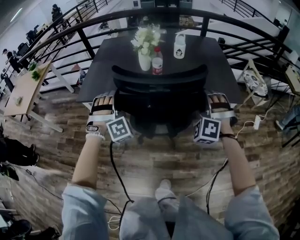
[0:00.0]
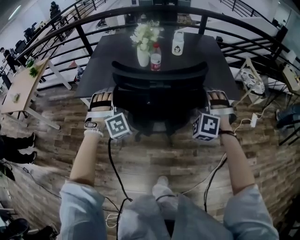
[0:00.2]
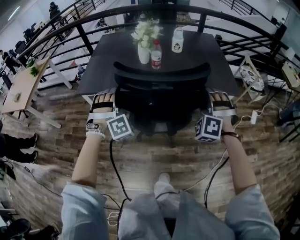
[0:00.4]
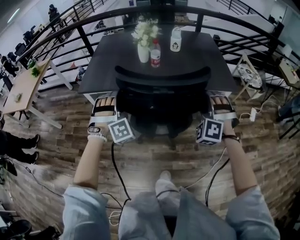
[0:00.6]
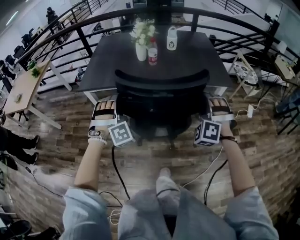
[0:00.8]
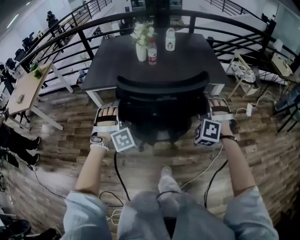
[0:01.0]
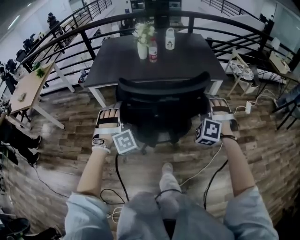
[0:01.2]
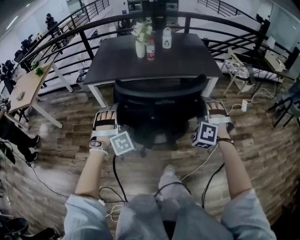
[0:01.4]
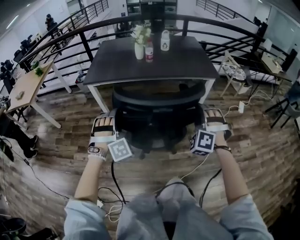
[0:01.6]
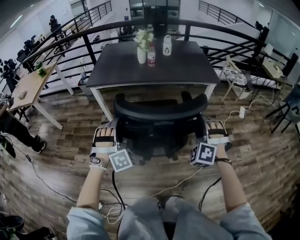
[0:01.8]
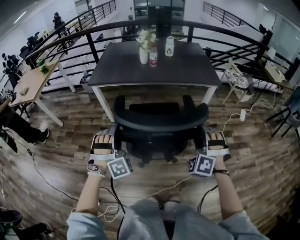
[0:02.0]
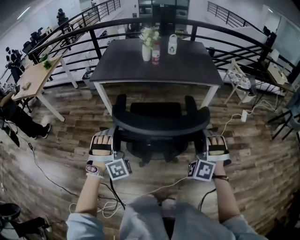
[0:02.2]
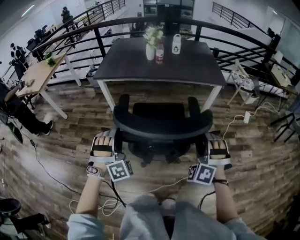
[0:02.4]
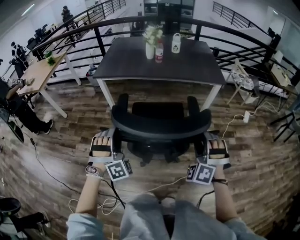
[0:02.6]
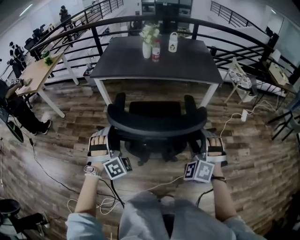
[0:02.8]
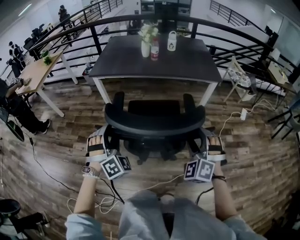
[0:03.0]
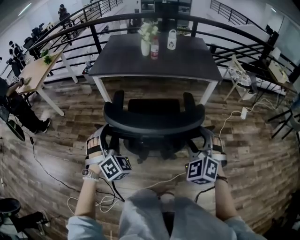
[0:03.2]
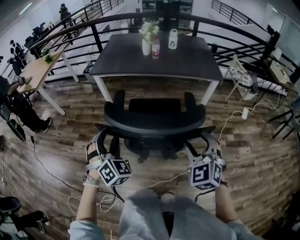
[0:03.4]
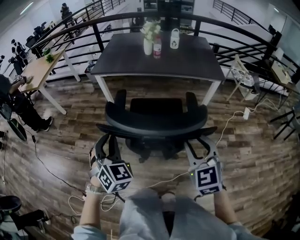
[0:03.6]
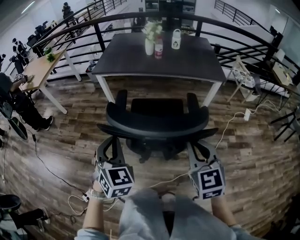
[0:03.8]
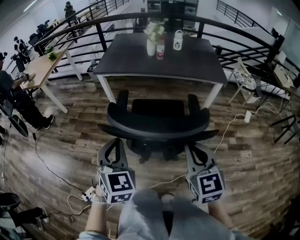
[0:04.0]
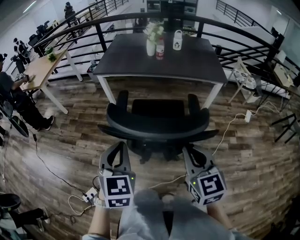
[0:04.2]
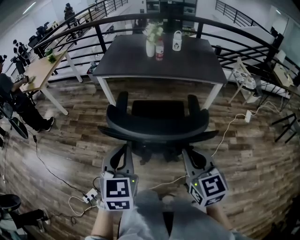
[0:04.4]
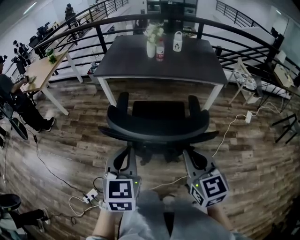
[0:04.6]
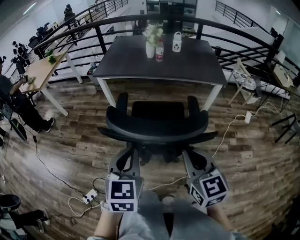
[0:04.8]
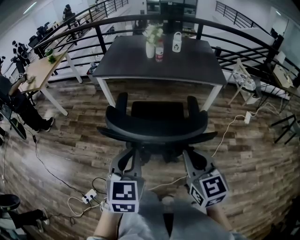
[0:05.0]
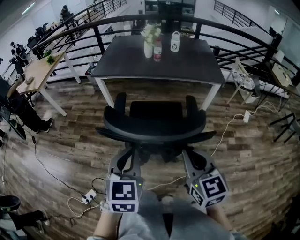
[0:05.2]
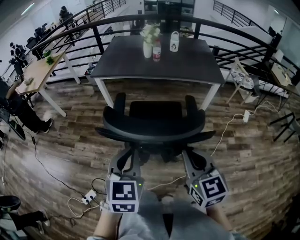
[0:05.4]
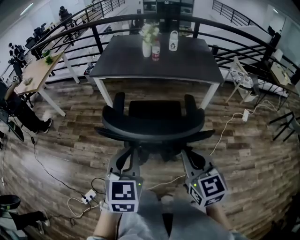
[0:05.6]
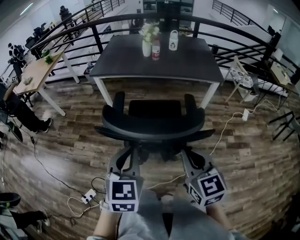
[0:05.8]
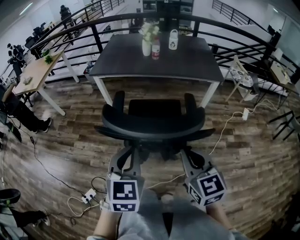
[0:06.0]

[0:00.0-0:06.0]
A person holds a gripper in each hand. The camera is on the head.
0:00.0 to 0:01.6: Both grippers travel together backward, approximately 35 cm.
0:01.6 to 0:03.0: Both grippers move backward, some 10 cm.
0:03.0 to 0:04.4: The right gripper shifts some 10 cm to the left and upward, rotates around the line of its fingers by about 60 degrees, clockwise from behind, and closes its fingers; the left gripper moves backward and upward, some 10 cm, rotates around the line of its fingers by approximately 60 degrees, counterclockwise from behind, and closes its fingers.
0:04.4 to 0:06.0: The grippers stay close to where they were, moving slightly.

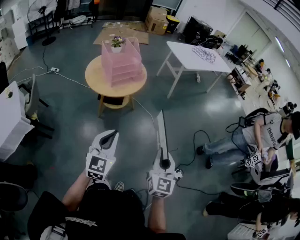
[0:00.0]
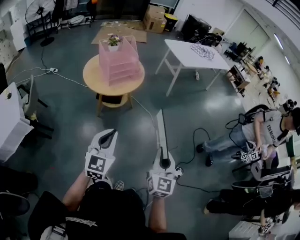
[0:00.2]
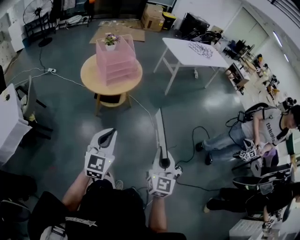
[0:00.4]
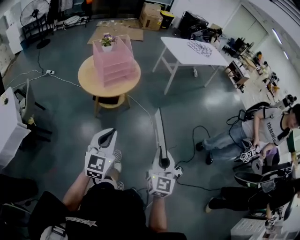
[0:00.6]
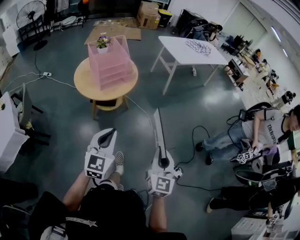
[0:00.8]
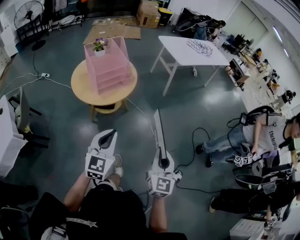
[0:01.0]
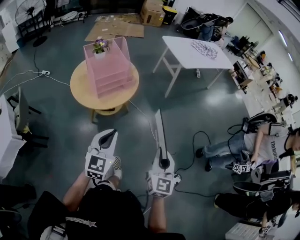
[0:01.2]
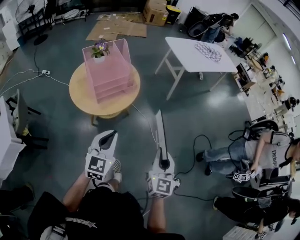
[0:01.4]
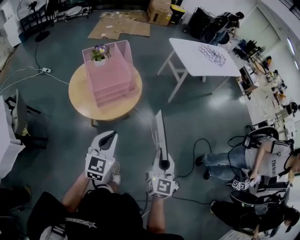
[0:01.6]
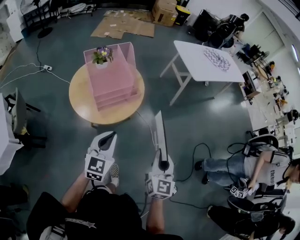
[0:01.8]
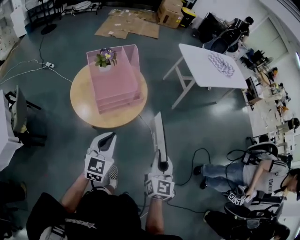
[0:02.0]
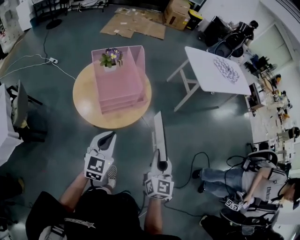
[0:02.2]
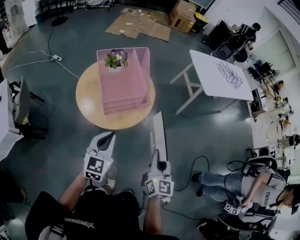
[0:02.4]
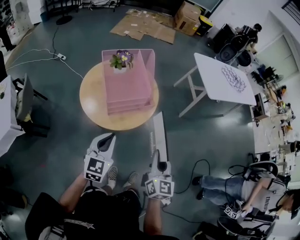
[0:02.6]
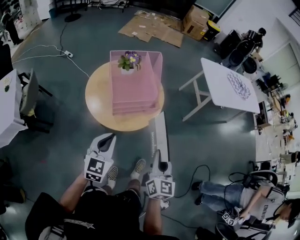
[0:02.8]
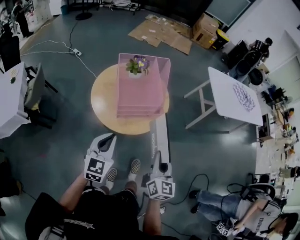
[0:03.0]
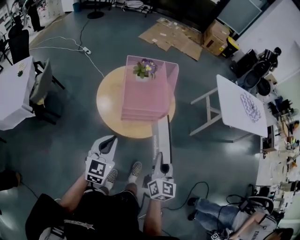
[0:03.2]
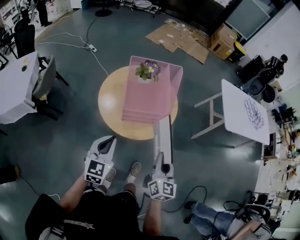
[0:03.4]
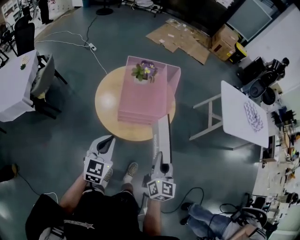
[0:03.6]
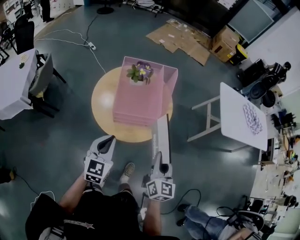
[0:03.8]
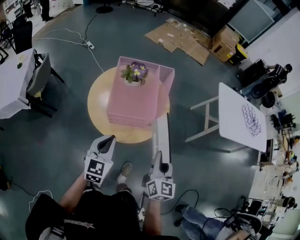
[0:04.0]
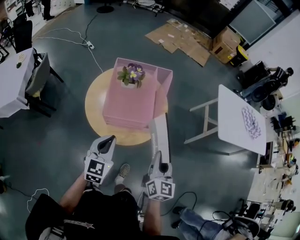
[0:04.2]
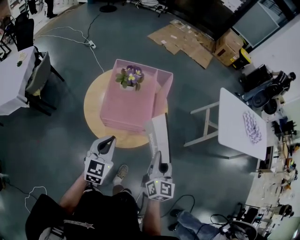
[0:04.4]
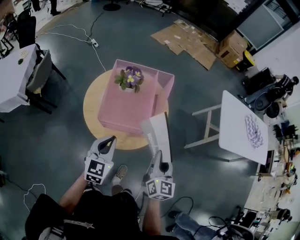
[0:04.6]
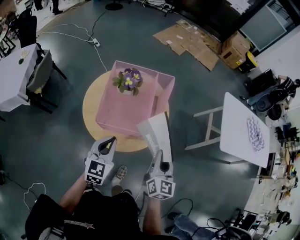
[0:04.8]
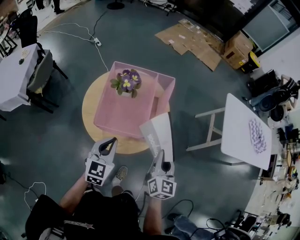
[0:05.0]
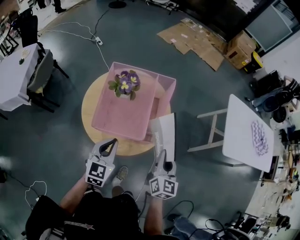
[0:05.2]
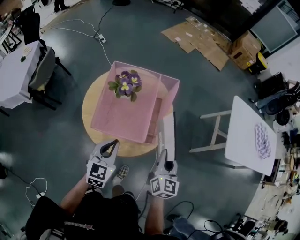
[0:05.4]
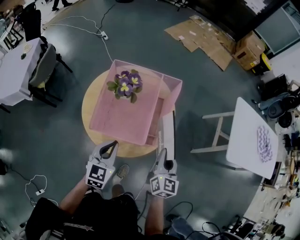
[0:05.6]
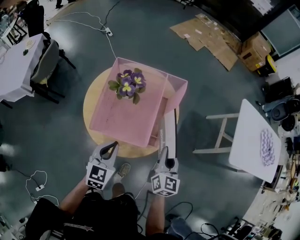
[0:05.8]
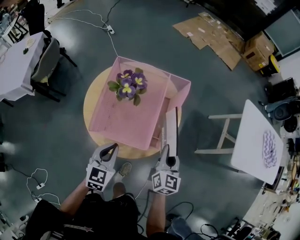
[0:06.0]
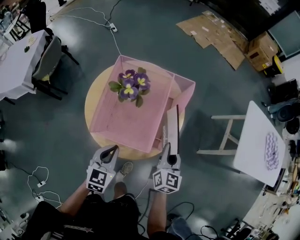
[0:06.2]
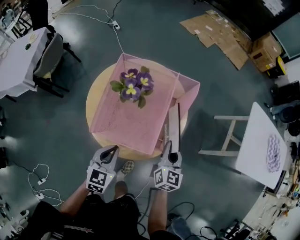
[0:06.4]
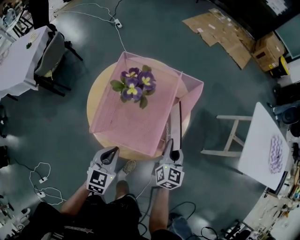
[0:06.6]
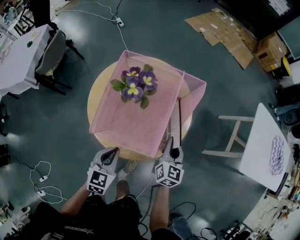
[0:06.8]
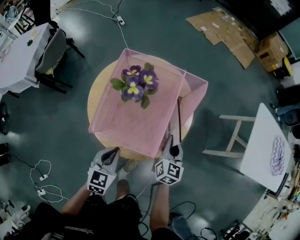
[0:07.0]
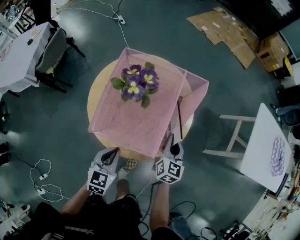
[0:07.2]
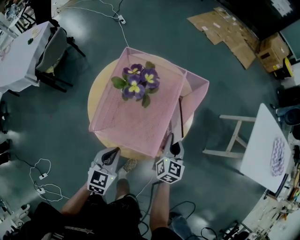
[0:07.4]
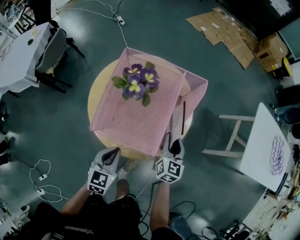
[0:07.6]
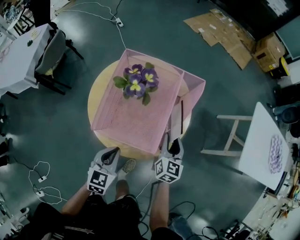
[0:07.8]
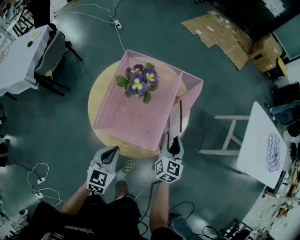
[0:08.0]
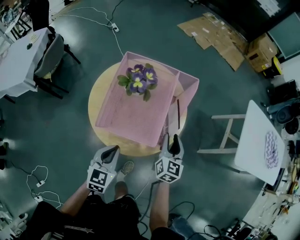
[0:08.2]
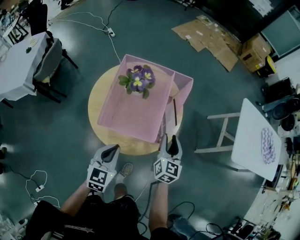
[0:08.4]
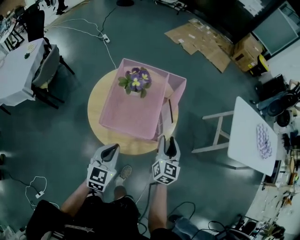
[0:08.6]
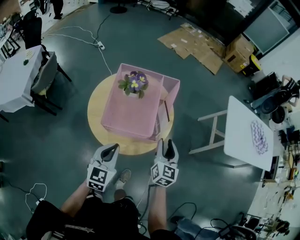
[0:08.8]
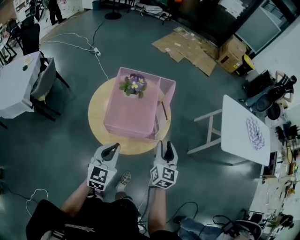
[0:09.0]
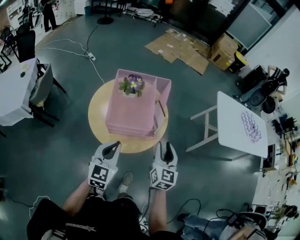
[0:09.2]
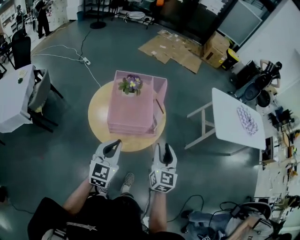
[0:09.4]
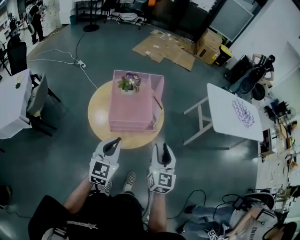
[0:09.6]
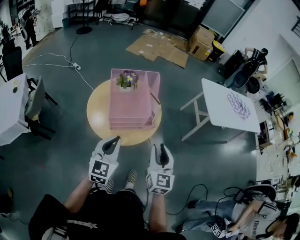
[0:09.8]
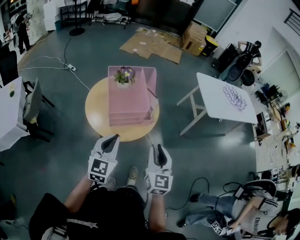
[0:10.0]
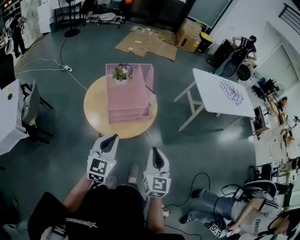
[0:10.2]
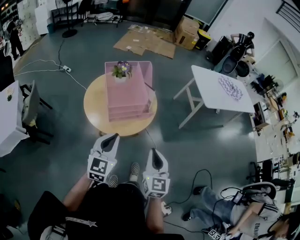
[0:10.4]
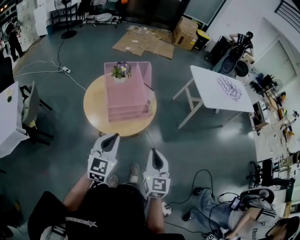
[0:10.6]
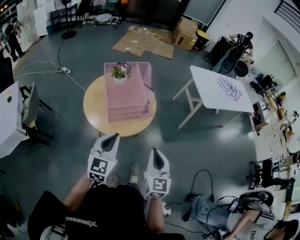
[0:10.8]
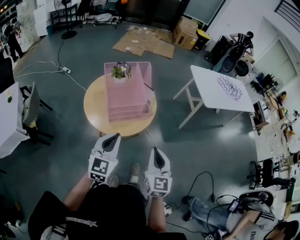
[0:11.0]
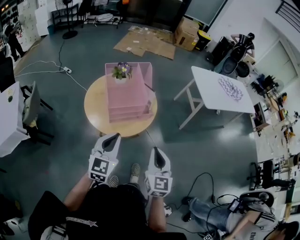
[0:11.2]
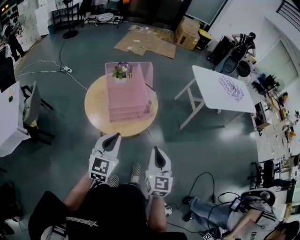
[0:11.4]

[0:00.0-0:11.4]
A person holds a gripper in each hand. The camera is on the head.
0:00.0 to 0:01.4: The two grippers go roughly 25 cm forward.
0:01.4 to 0:02.8: Both grippers travel together forward and to the left, roughly 15 cm. The right gripper turns by approximately 20 degrees.
0:02.8 to 0:04.2: The right gripper heads forward, covering about 15 cm, while the left gripper is displaced forward and to the right by about 10 cm.
0:04.2 to 0:05.6: The left gripper goes approximately 10 cm forward and downward; the right gripper moves forward and downward, about 15 cm.
0:05.6 to 0:07.2: The left gripper is displaced downward by some 10 cm, while the right gripper moves downward and forward, about 15 cm.
0:07.2 to 0:08.6: The right gripper travels upward and backward by about 10 cm, and opens; the left gripper goes about 10 cm upward.
0:08.6 to 0:10.0: The left gripper is displaced upward and backward by about 15 cm, and swivels approximately 30 degrees, while the right gripper heads backward and upward, covering roughly 30 cm.
0:10.0 to 0:11.4: The right gripper travels backward by some 5 cm, and closes its fingers.

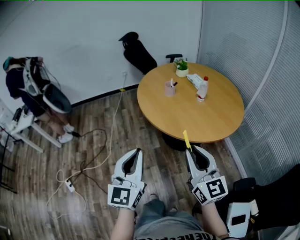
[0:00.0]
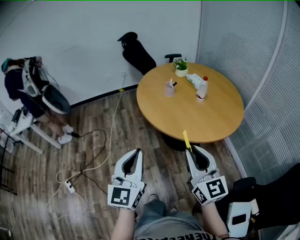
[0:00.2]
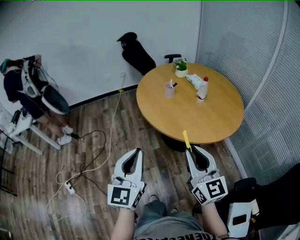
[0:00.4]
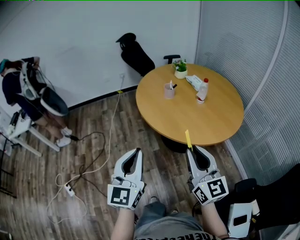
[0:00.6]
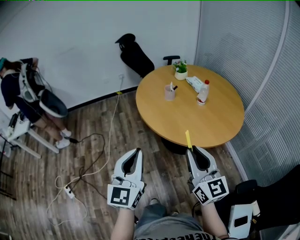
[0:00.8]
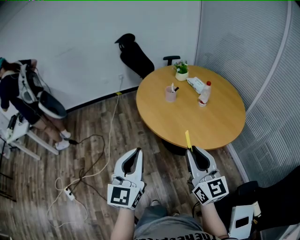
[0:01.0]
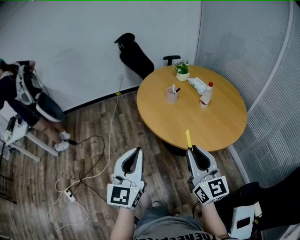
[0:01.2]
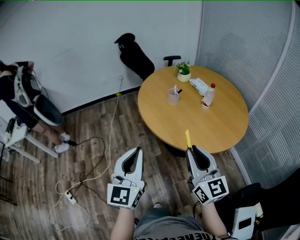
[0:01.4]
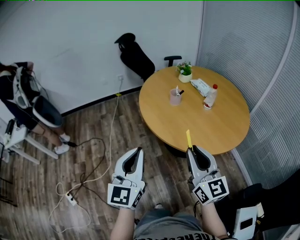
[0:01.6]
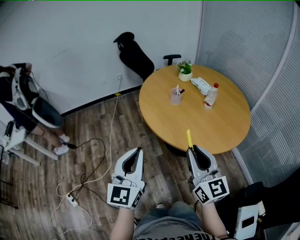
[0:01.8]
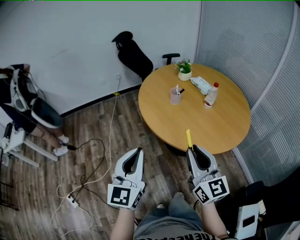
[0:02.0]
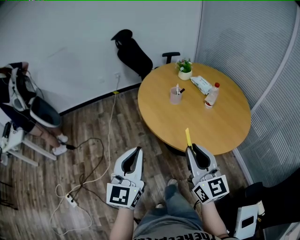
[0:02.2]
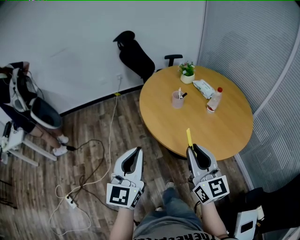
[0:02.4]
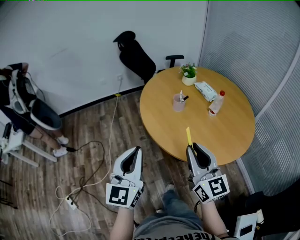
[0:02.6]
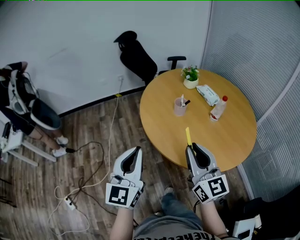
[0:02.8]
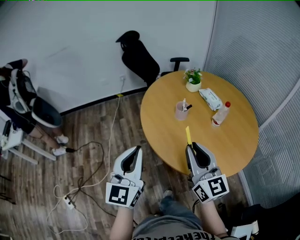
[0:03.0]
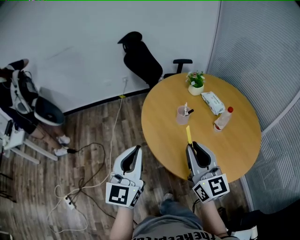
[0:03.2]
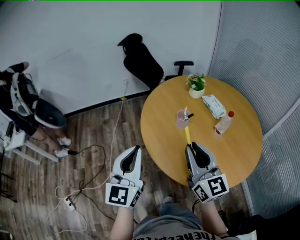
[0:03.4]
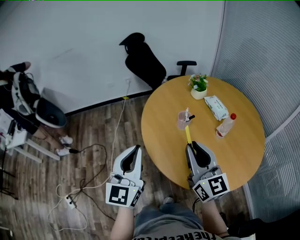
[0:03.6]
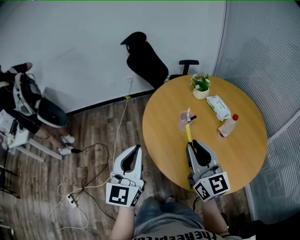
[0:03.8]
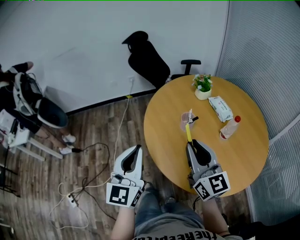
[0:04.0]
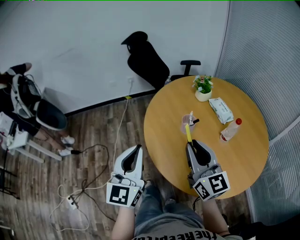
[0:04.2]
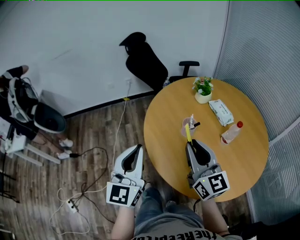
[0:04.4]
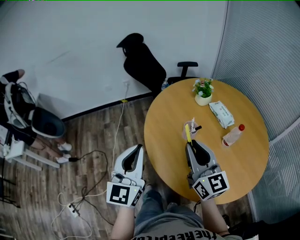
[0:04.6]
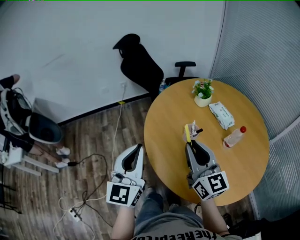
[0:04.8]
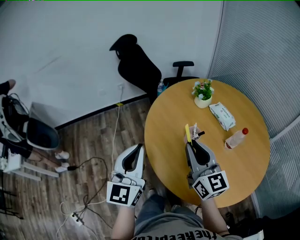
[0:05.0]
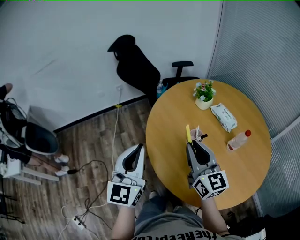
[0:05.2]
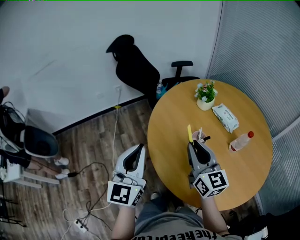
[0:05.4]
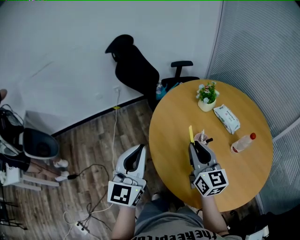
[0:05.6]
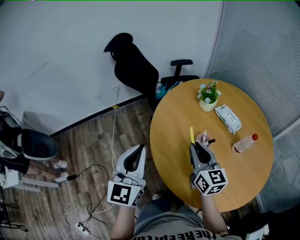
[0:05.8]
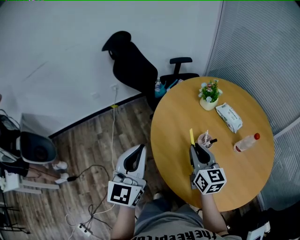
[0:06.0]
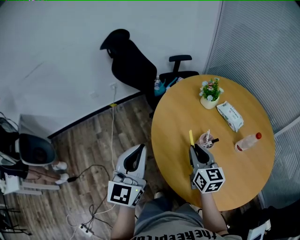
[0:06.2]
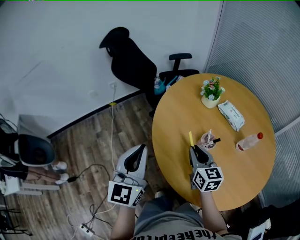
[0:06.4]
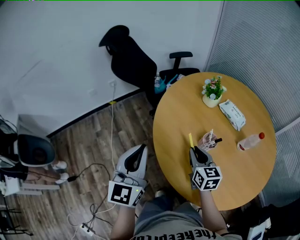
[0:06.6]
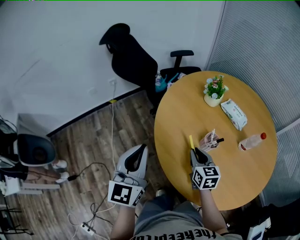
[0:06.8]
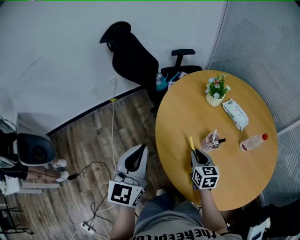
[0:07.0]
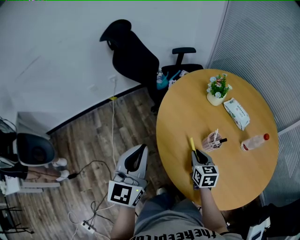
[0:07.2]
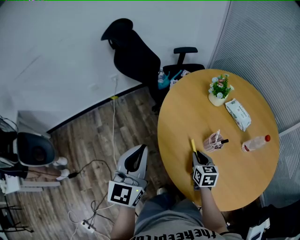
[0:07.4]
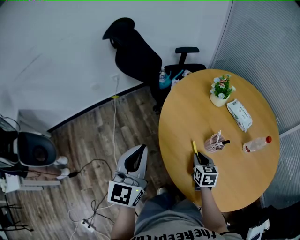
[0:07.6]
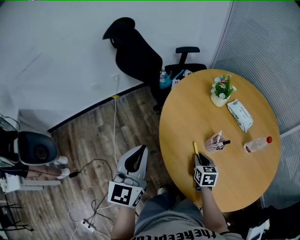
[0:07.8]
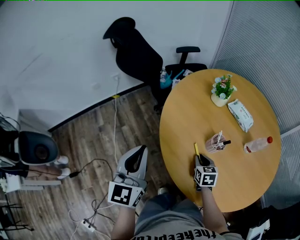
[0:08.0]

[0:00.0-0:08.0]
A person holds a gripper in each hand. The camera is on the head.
0:00.0 to 0:01.6: Both grippers travel together forward and to the left, approximately 15 cm.
0:01.6 to 0:03.2: Both grippers move forward, some 20 cm.
0:03.2 to 0:04.8: The two grippers go approximately 15 cm forward.
0:04.8 to 0:06.4: The left gripper heads forward and to the left, covering approximately 15 cm. Meanwhile the right gripper heads downward and forward, covering some 20 cm, and turns by about 30 degrees.
0:06.4 to 0:08.0: The left gripper changes place by about 5 cm; the right gripper goes roughly 15 cm downward, and rotates about 30 degrees.
